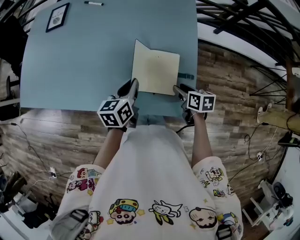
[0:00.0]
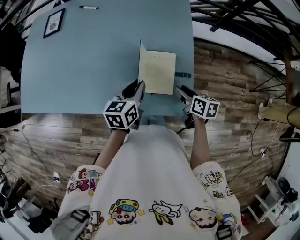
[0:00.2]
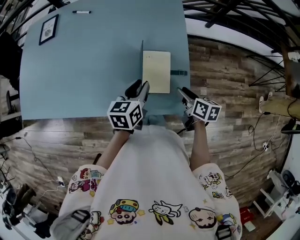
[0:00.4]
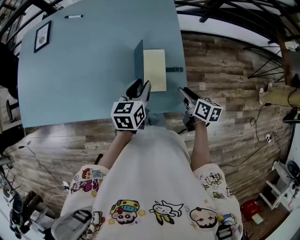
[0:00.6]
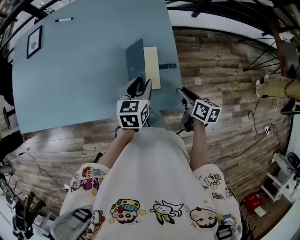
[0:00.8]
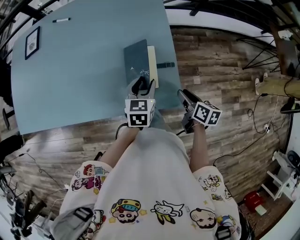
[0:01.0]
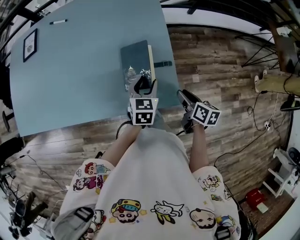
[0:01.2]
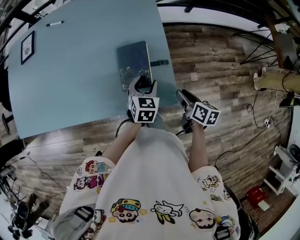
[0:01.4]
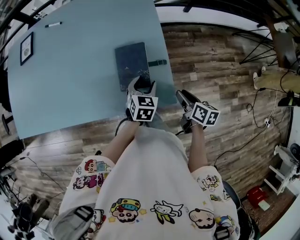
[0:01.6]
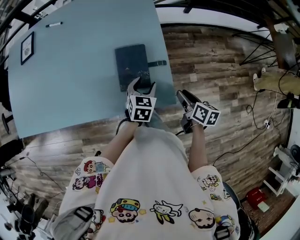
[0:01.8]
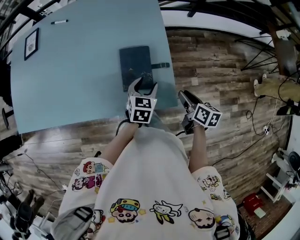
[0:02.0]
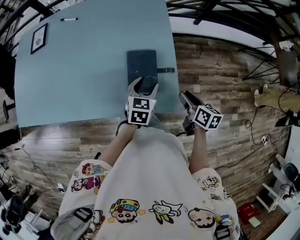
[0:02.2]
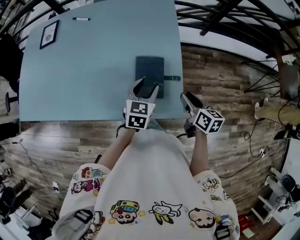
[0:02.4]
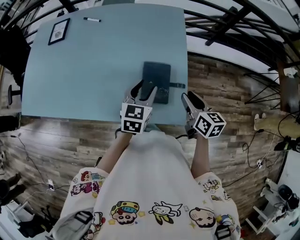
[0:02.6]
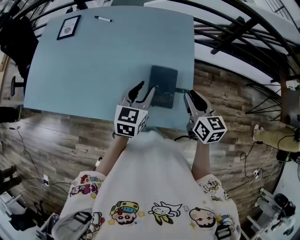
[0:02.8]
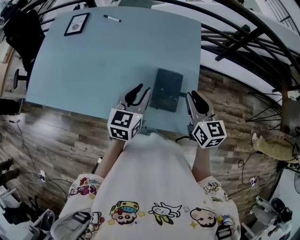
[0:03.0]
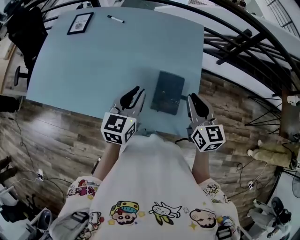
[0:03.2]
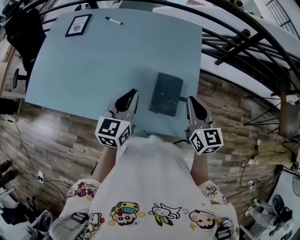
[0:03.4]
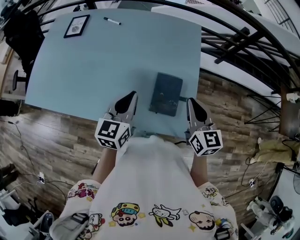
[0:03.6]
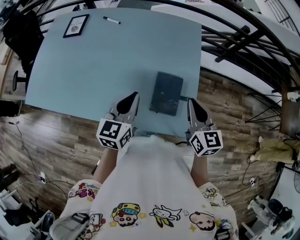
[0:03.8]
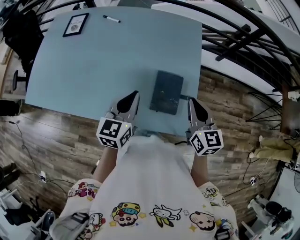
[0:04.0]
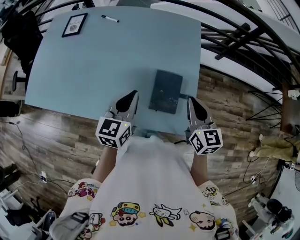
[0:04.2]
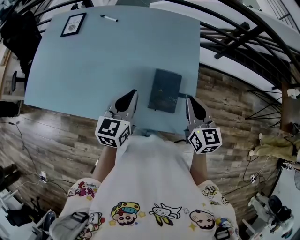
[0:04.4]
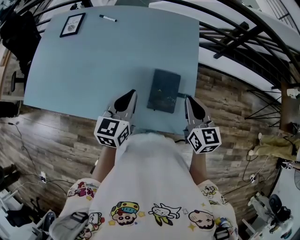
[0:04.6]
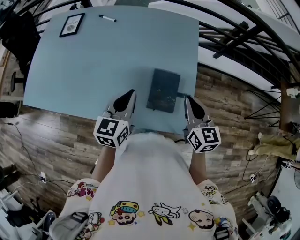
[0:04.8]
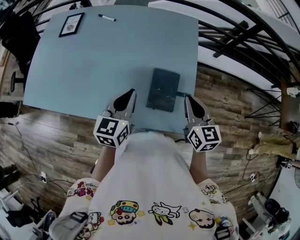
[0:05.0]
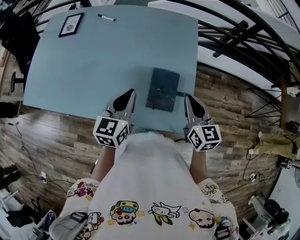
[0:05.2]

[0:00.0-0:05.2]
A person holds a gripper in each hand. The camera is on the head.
0:00.0 to 0:01.8: The right gripper travels to the right and backward by approximately 15 cm, and rotates some 30 degrees; the left gripper travels to the right and downward by about 20 cm, swivels roughly 40 degrees, and opens.
0:01.8 to 0:03.4: The left gripper travels to the left and upward by roughly 30 cm, rotates approximately 30 degrees, and closes up. Meanwhile the right gripper travels upward, to the left and forward by about 30 cm, rolls counterclockwise, seen from behind, by some 50 degrees, and closes up.
0:03.4 to 0:05.2: There are only small adjustments of the grippers.

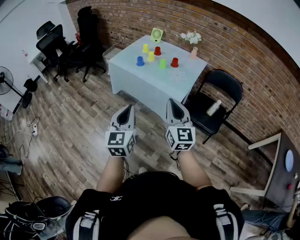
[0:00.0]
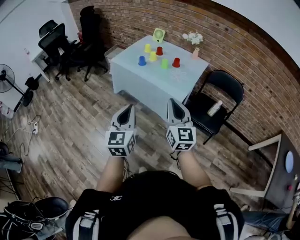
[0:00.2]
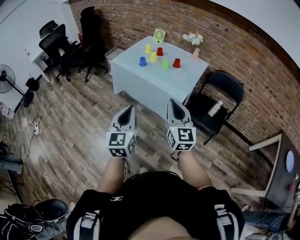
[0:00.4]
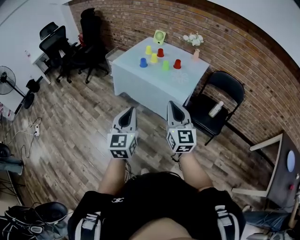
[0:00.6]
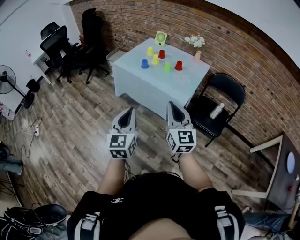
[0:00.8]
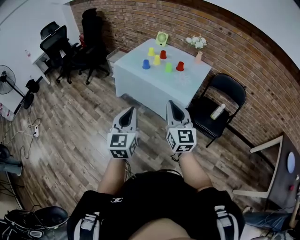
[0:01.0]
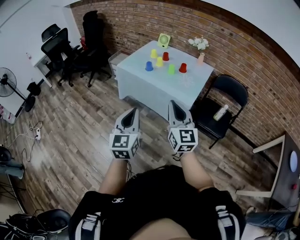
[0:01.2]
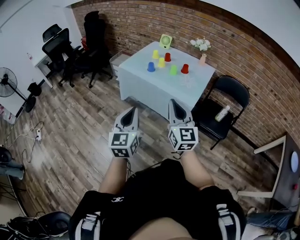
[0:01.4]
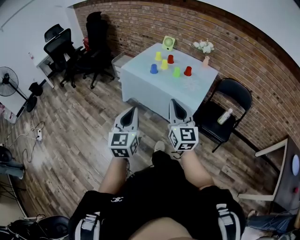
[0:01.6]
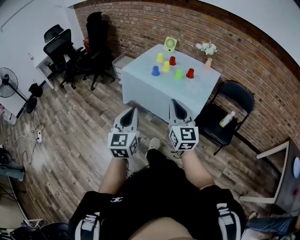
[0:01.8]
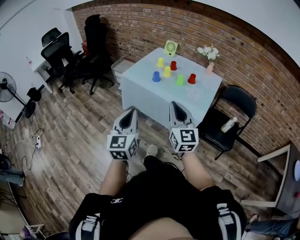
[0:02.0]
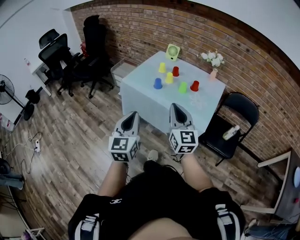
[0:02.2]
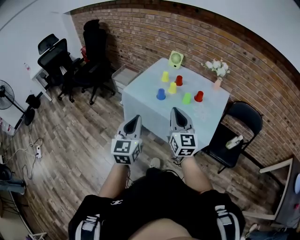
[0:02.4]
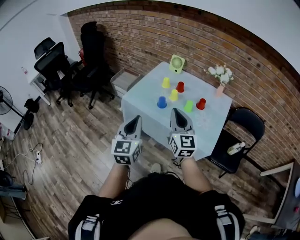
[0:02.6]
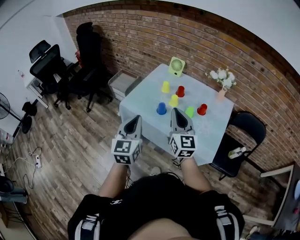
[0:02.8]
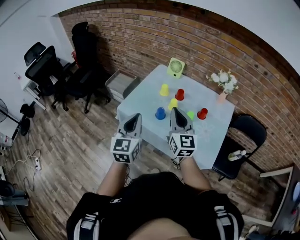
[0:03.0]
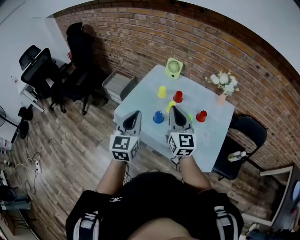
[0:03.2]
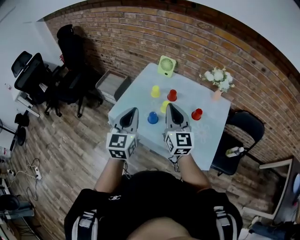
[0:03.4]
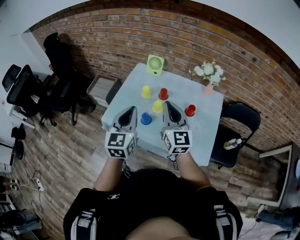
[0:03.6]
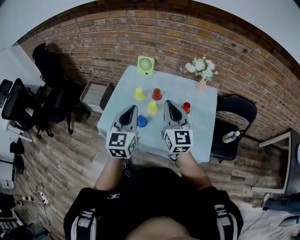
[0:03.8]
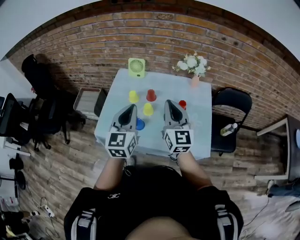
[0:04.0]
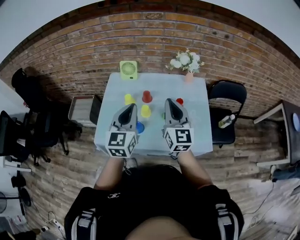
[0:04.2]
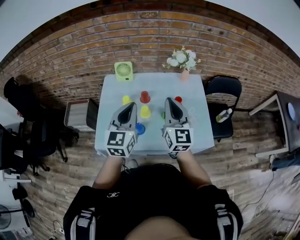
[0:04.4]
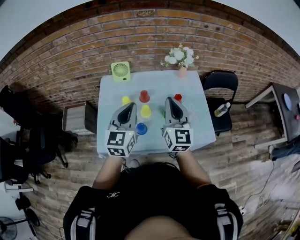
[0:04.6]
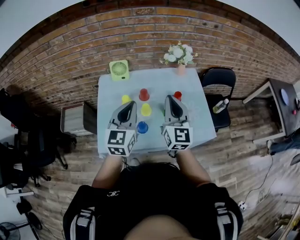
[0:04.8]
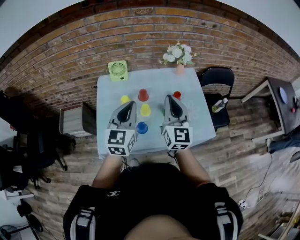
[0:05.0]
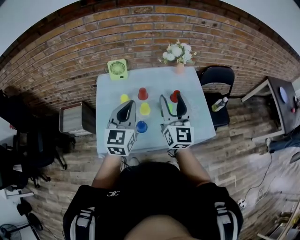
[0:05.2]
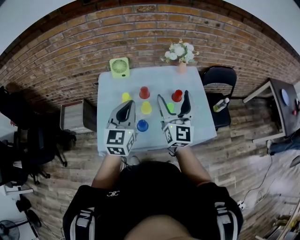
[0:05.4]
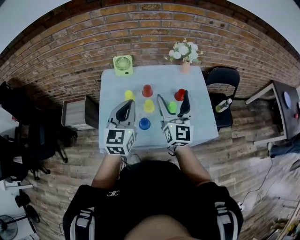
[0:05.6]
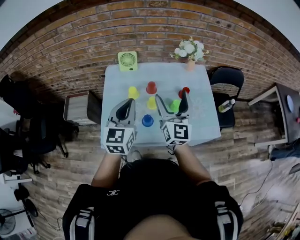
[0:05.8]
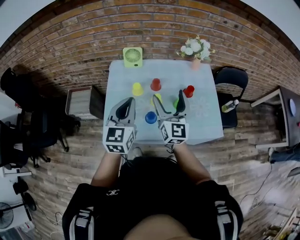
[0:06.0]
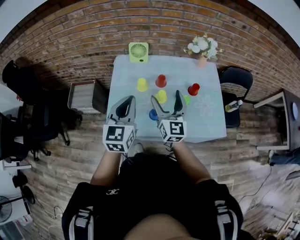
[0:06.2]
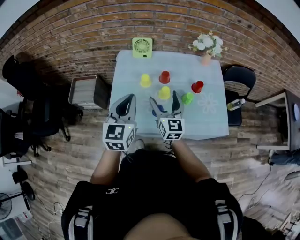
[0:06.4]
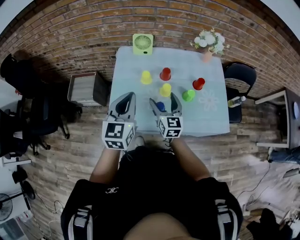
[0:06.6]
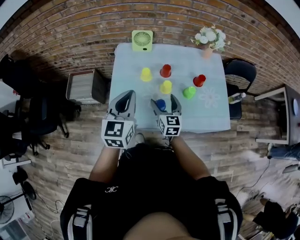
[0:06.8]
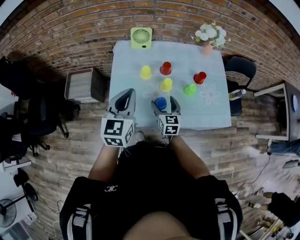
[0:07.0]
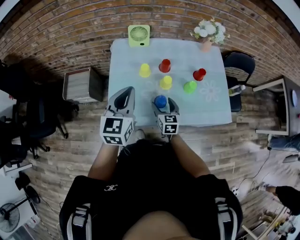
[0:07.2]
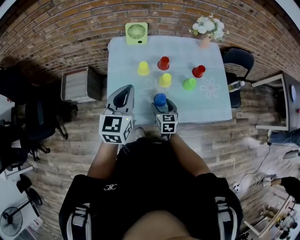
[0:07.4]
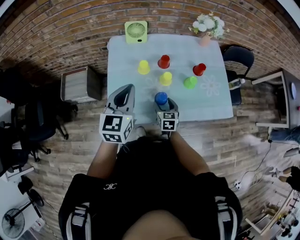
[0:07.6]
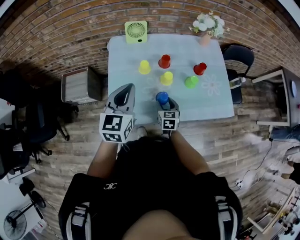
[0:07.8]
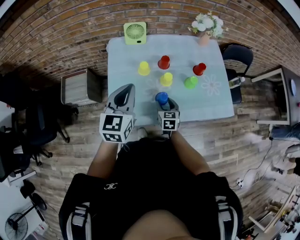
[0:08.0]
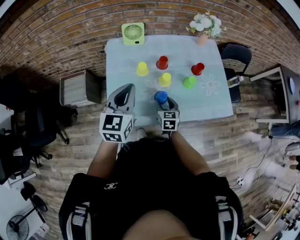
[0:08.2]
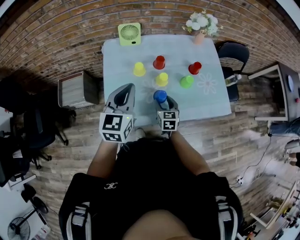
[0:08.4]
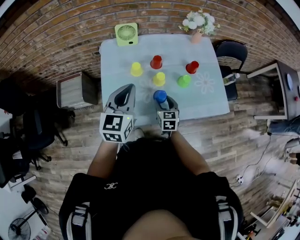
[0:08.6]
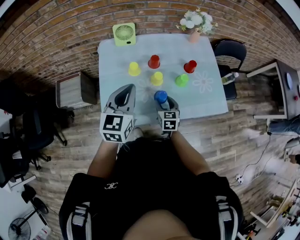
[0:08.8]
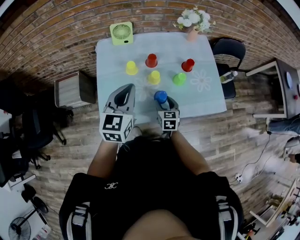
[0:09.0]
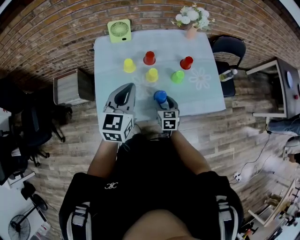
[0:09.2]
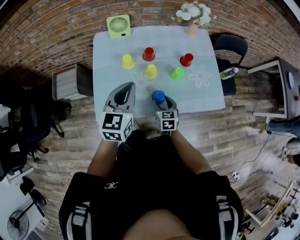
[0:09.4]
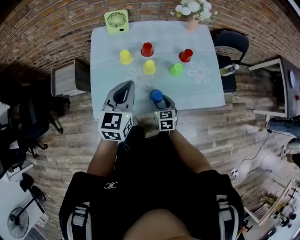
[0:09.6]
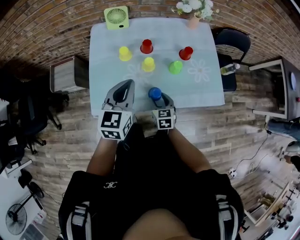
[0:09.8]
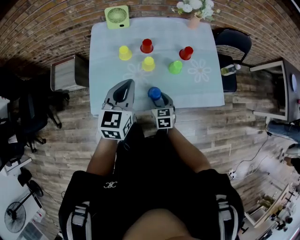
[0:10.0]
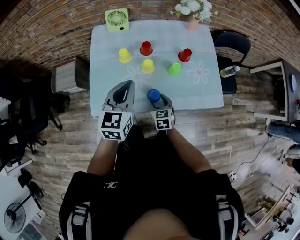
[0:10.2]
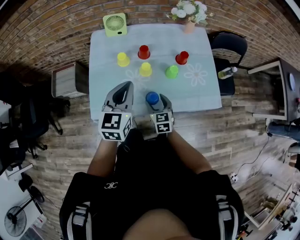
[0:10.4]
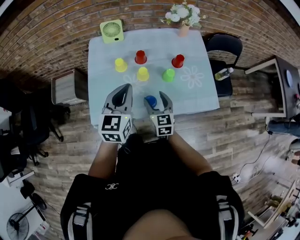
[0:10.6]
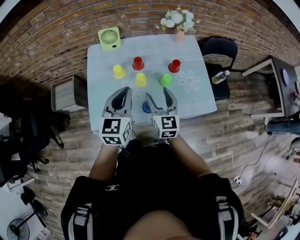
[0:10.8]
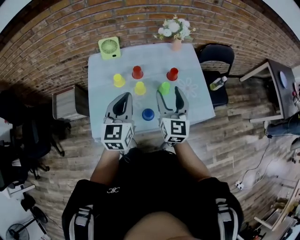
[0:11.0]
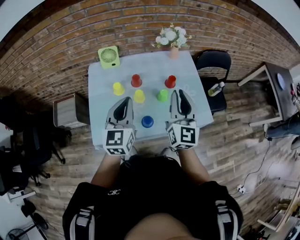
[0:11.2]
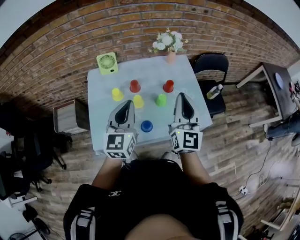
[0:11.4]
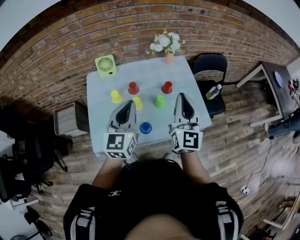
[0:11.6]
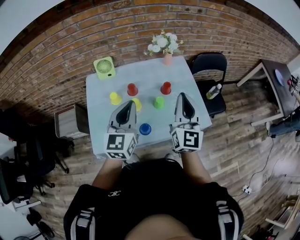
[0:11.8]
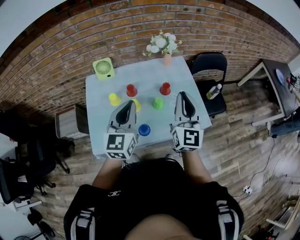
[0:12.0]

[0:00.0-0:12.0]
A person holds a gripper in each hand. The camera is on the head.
0:00.0 to 0:01.6: Both grippers travel together to the left, some 10 cm.
0:01.6 to 0:03.0: The two grippers travel together, forward, some 50 cm.
0:03.0 to 0:04.4: The left gripper shifts by roughly 20 cm, and rotates approximately 30 degrees, while the right gripper ends up some 10 cm from where it was, and swivels about 30 degrees.
0:04.4 to 0:06.0: The grippers both shift to the left by some 10 cm. The right gripper opens its fingers.
0:06.0 to 0:07.6: The right gripper moves downward, about 30 cm, and tips its fingers downward by about 40 degrees. Meanwhile the left gripper shifts some 10 cm to the left and downward.
0:07.6 to 0:09.0: The two grippers go about 5 cm to the right.
0:09.0 to 0:10.4: The left gripper is displaced to the right by approximately 5 cm.
0:10.4 to 0:12.0: The left gripper travels upward and to the right by approximately 10 cm; the right gripper goes about 35 cm upward and to the right, tilts its fingers roughly 40 degrees upward, and closes its fingers.

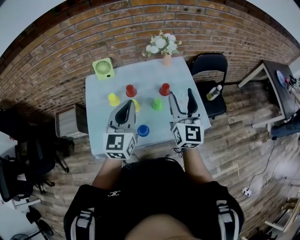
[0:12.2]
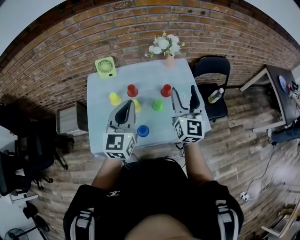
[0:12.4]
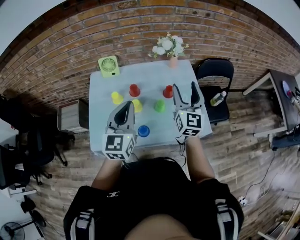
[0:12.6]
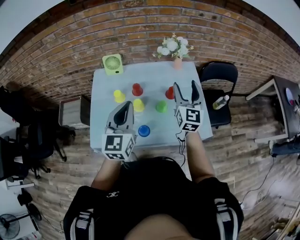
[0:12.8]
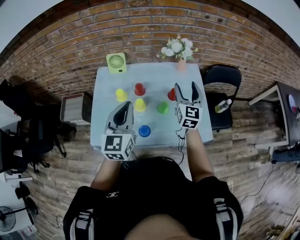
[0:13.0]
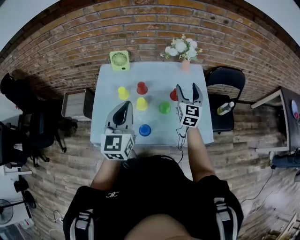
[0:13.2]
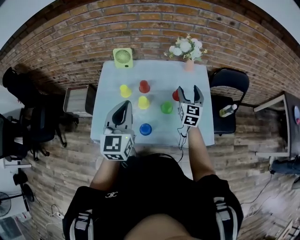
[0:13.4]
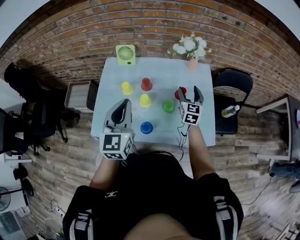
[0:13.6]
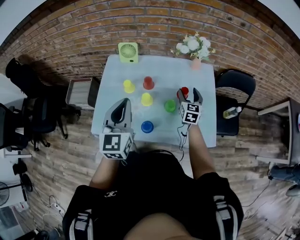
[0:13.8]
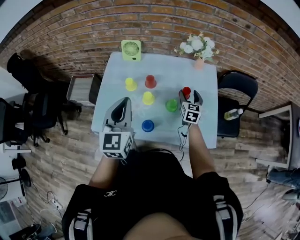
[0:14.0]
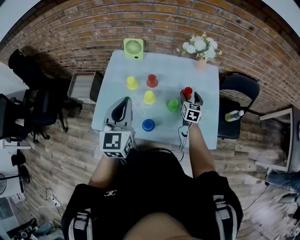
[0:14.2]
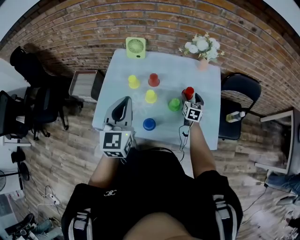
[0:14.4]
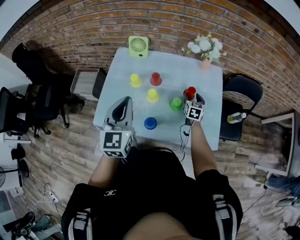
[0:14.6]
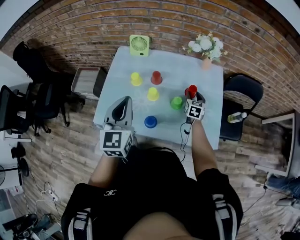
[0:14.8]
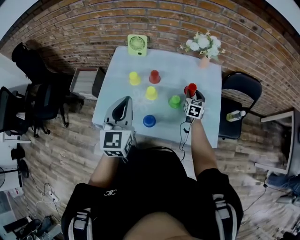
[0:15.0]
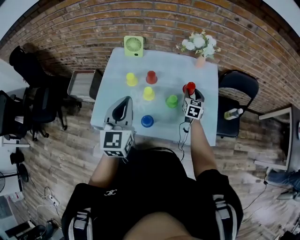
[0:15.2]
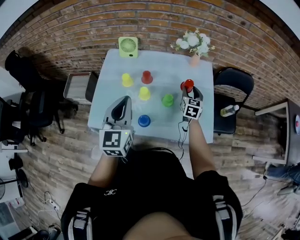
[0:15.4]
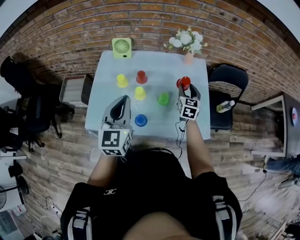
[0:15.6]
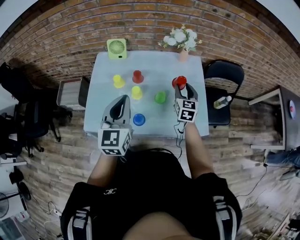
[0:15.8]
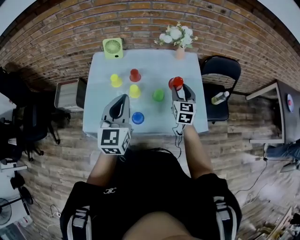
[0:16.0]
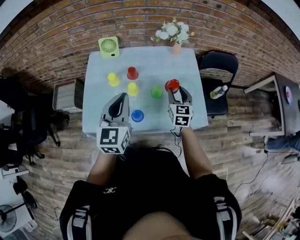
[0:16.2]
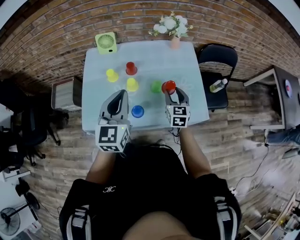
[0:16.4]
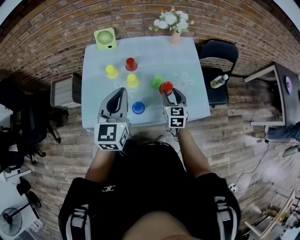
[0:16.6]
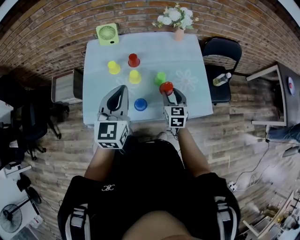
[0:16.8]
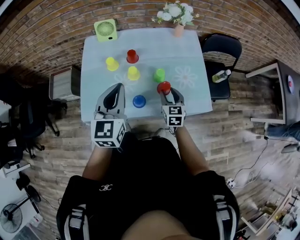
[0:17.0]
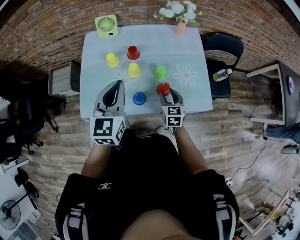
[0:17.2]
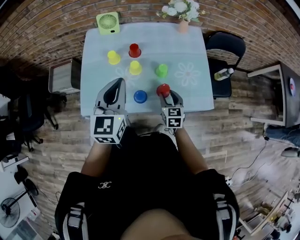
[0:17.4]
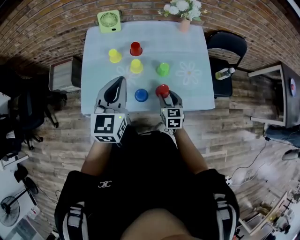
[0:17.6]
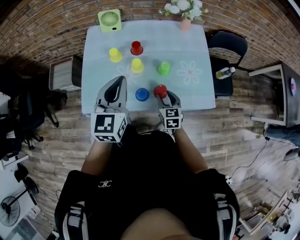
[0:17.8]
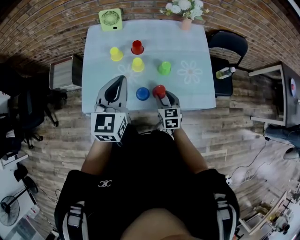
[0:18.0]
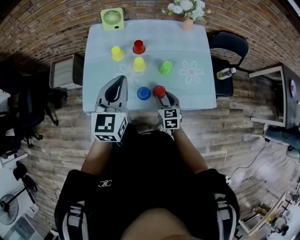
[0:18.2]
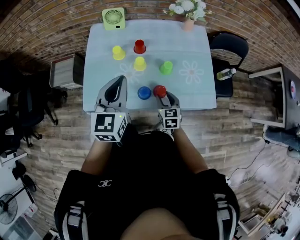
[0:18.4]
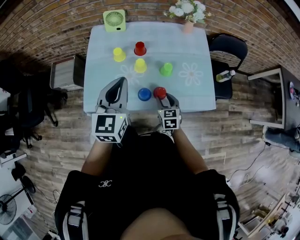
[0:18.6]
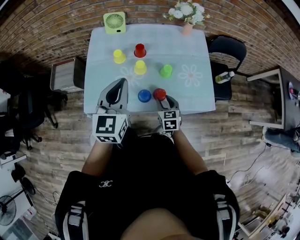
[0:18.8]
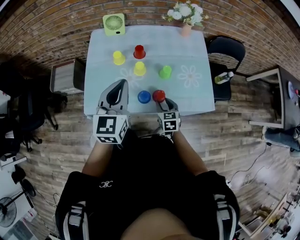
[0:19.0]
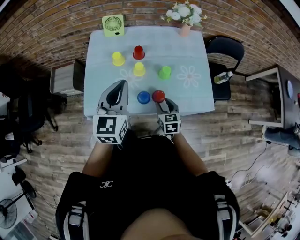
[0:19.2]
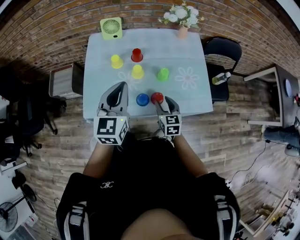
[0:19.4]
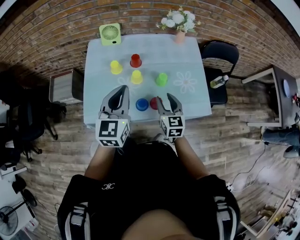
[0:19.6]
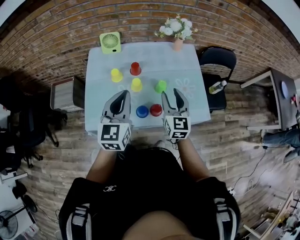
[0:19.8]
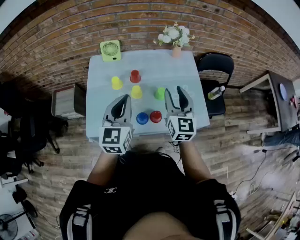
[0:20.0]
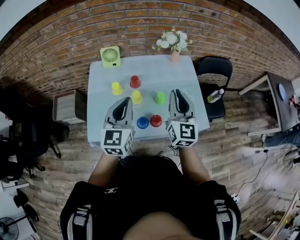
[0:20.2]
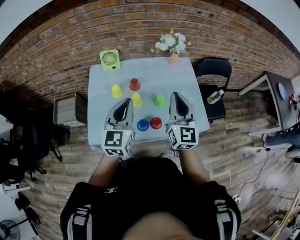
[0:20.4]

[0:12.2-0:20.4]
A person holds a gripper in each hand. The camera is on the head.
0:12.2 to 0:13.8: The left gripper rotates about 20 degrees; the right gripper heads downward and forward, covering roughly 30 cm, and changes its angle by roughly 30 degrees.
0:13.8 to 0:15.4: The right gripper reaches some 10 cm downward, then returns.
0:15.4 to 0:17.2: The right gripper moves backward and to the left, approximately 20 cm.
0:17.2 to 0:18.8: The right gripper changes place by about 5 cm.
0:18.8 to 0:20.4: The left gripper shifts by approximately 5 cm. Meanwhile the right gripper travels upward by approximately 30 cm, angles its fingers upward, by approximately 40 degrees, and closes its fingers.
